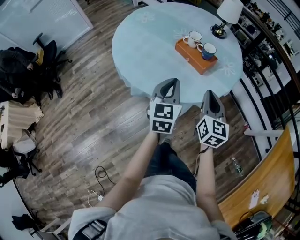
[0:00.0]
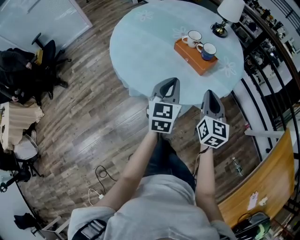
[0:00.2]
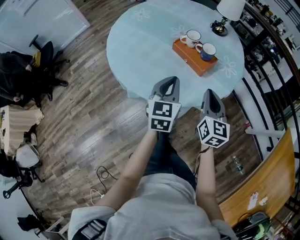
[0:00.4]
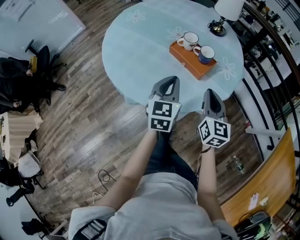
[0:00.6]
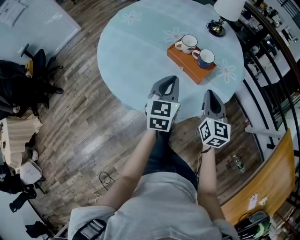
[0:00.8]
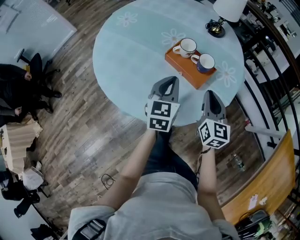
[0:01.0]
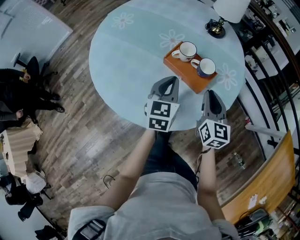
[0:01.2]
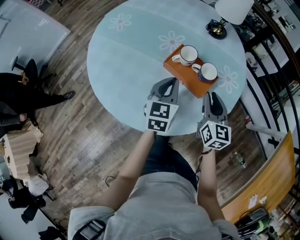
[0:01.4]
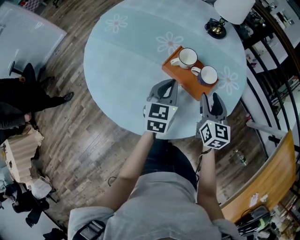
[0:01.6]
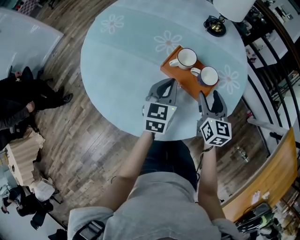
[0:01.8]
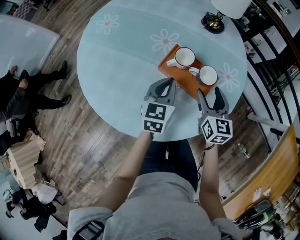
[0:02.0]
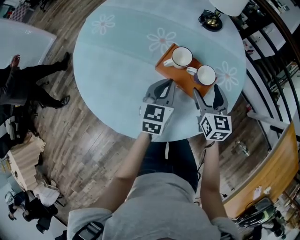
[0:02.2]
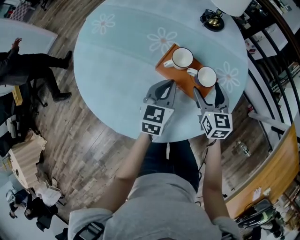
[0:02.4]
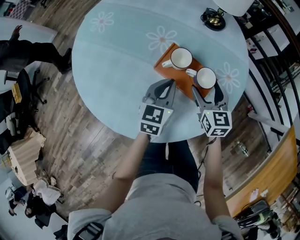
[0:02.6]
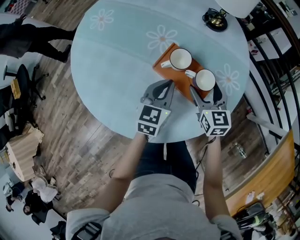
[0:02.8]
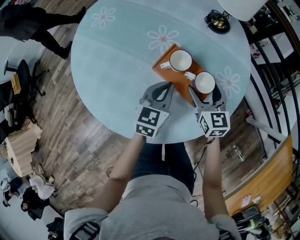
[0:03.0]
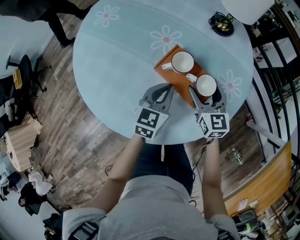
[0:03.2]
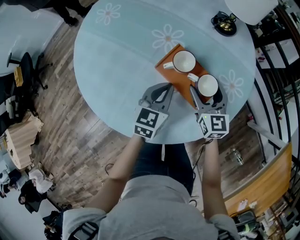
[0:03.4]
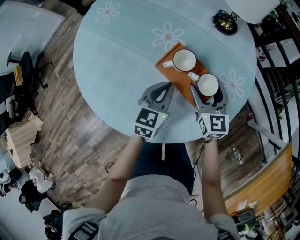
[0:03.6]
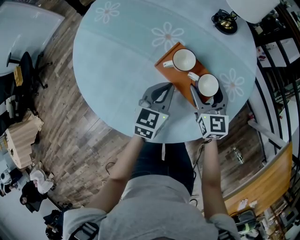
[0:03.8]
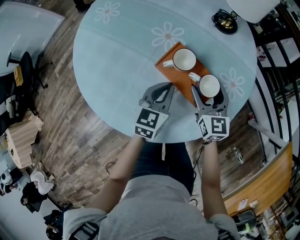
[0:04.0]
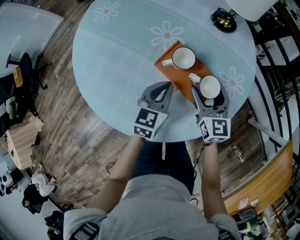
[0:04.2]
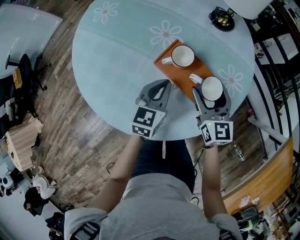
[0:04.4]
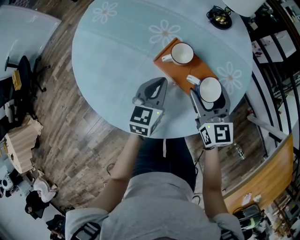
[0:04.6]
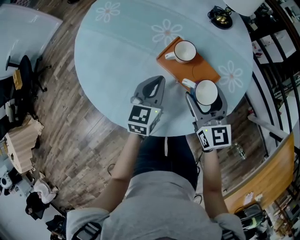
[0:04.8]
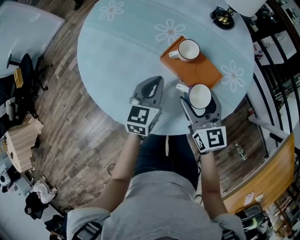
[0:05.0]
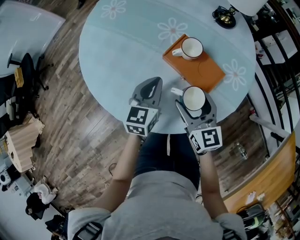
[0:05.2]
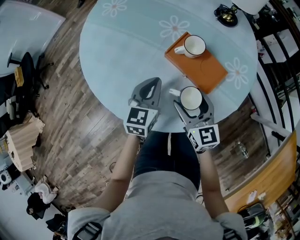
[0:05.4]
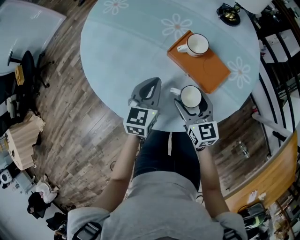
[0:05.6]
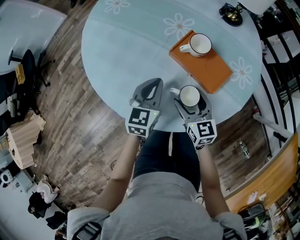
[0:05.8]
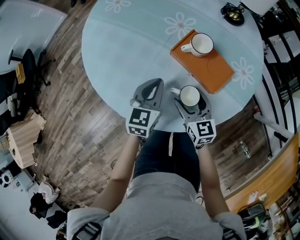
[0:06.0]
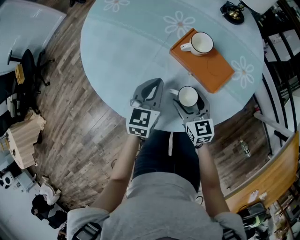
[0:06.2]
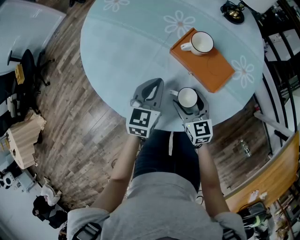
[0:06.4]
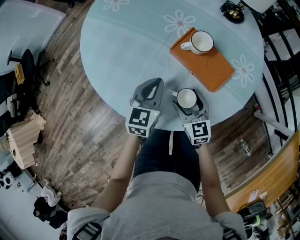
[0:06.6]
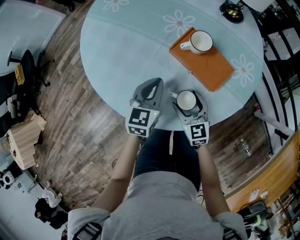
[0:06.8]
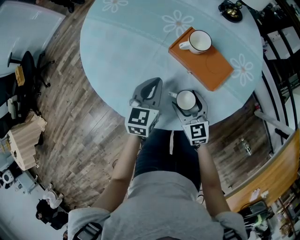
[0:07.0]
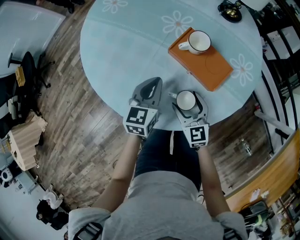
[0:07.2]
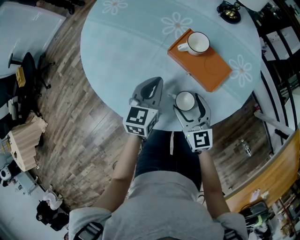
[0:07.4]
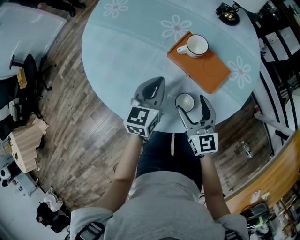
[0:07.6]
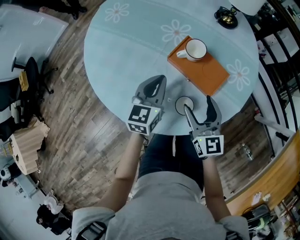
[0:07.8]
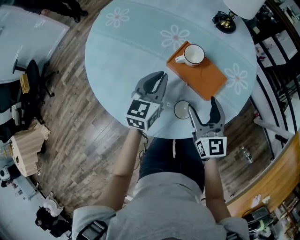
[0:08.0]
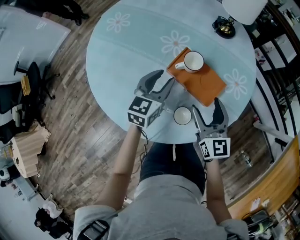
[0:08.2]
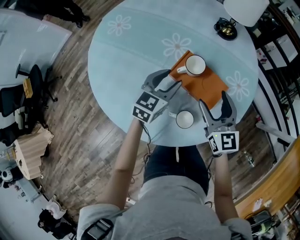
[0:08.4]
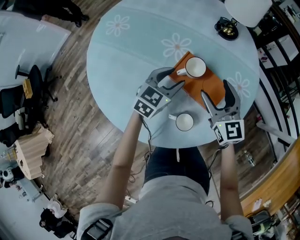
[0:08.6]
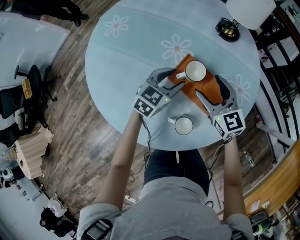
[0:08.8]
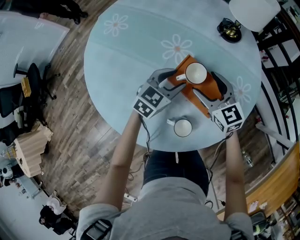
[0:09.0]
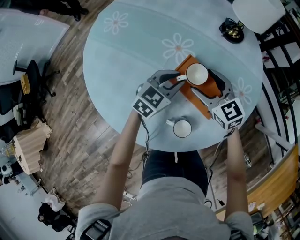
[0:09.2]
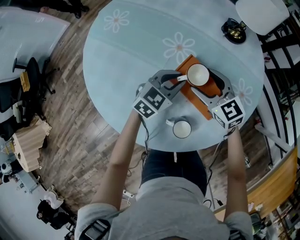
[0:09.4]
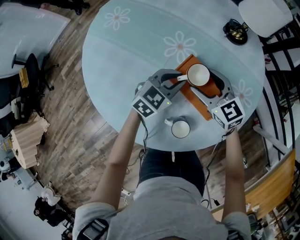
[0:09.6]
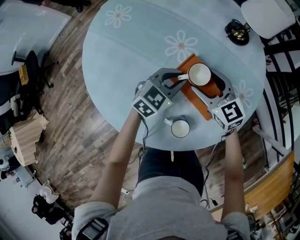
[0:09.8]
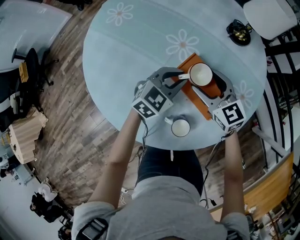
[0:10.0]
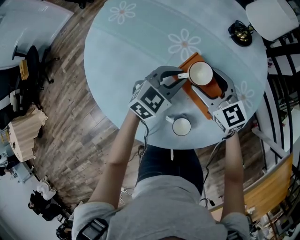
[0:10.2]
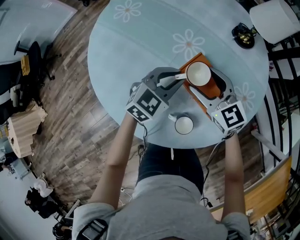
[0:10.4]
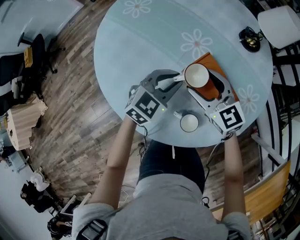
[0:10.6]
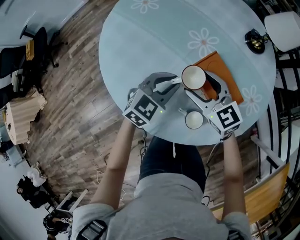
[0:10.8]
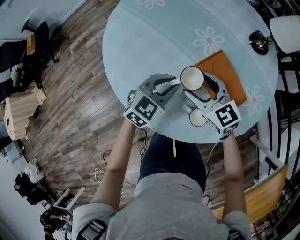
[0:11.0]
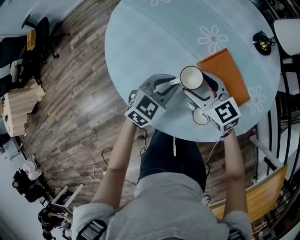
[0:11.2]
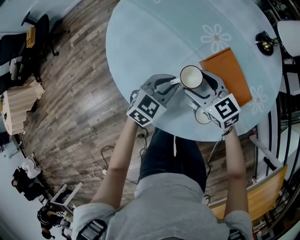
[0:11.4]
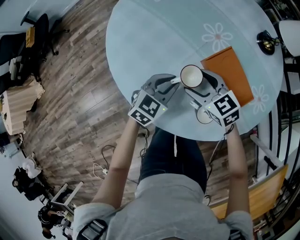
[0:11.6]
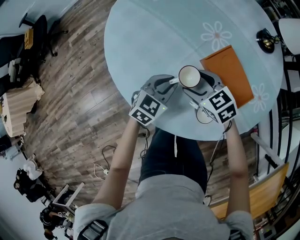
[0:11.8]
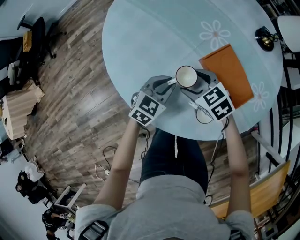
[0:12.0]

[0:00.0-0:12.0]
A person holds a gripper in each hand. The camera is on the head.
0.0 to 1.6 s: Both grippers travel together forward, approximately 25 cm. The right gripper opens its fingers.
1.6 to 3.0 s: The right gripper moves forward, approximately 10 cm, and opens its fingers; the left gripper shifts by approximately 5 cm.
3.0 to 4.4 s: The grippers make only small movements.
4.4 to 6.0 s: The left gripper is displaced to the left by about 10 cm, while the right gripper heads to the left, backward and downward, covering roughly 20 cm.
6.0 to 7.6 s: The right gripper is displaced upward by approximately 5 cm.
7.6 to 9.0 s: The right gripper travels forward by approximately 20 cm, while the left gripper shifts approximately 15 cm forward and to the right, turns by roughly 30 degrees, and opens up.
9.0 to 10.4 s: The left gripper closes, while the right gripper is displaced to the left by roughly 5 cm.
10.4 to 12.0 s: The two grippers go some 20 cm to the left, downward and backward. The right gripper turns by roughly 30 degrees.

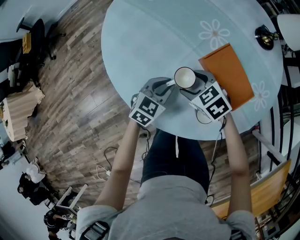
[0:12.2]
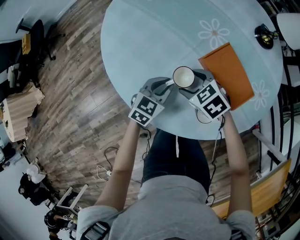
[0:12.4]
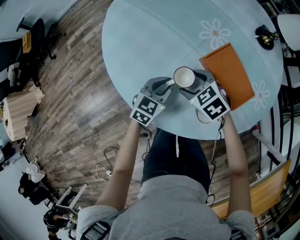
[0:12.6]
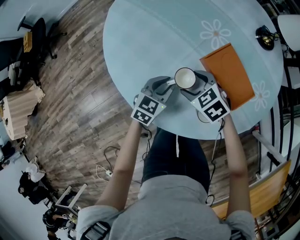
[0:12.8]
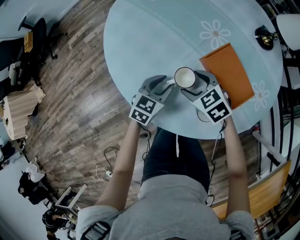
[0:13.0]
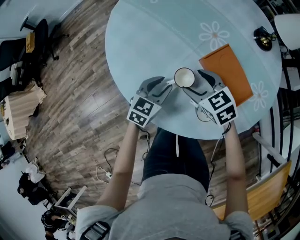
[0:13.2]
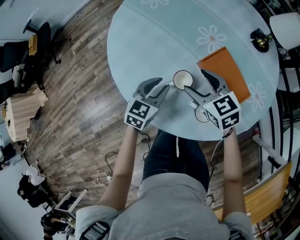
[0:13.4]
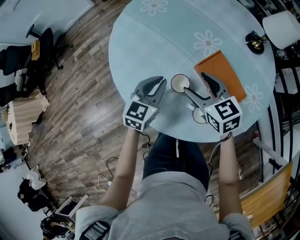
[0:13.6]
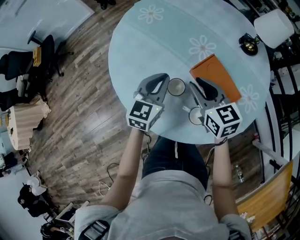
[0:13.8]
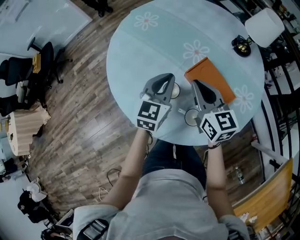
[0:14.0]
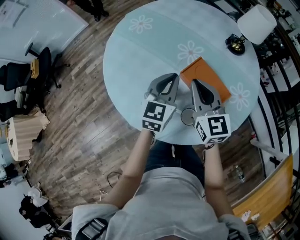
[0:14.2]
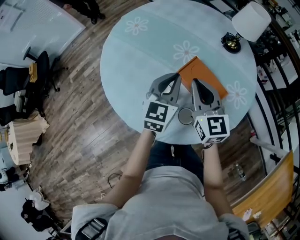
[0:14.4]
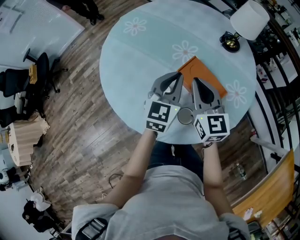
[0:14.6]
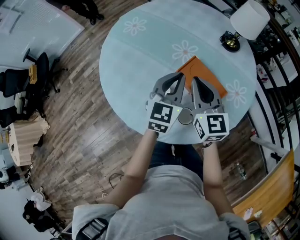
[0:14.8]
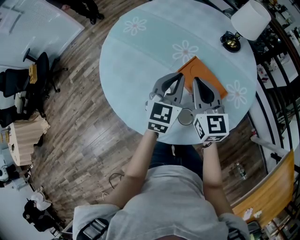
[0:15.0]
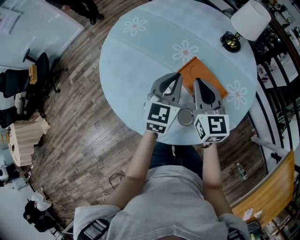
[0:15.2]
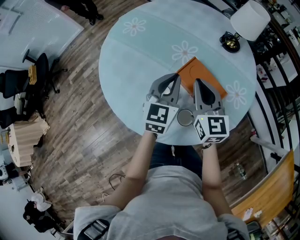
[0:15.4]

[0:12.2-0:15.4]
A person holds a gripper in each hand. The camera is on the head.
12.2 to 13.8 s: The grippers both shift upward by roughly 15 cm. The right gripper tips its fingers upward by about 30 degrees, and closes up. Meanwhile the left gripper changes its angle by roughly 20 degrees.
13.8 to 15.4 s: Both grippers move to the right, some 10 cm. The right gripper turns by about 30 degrees, and closes up.

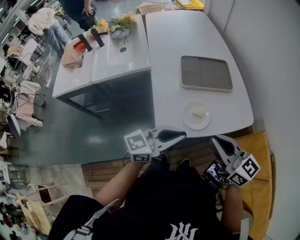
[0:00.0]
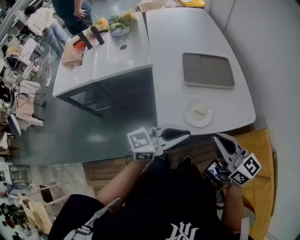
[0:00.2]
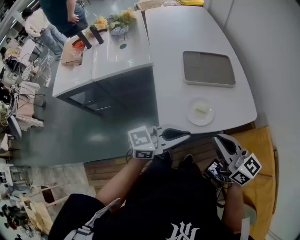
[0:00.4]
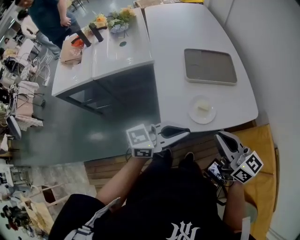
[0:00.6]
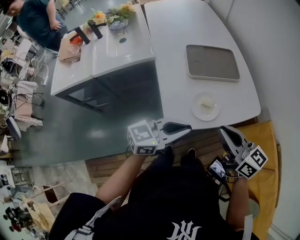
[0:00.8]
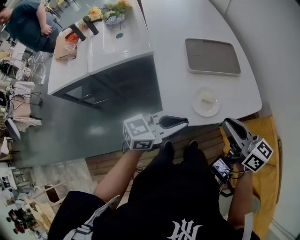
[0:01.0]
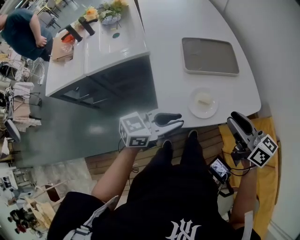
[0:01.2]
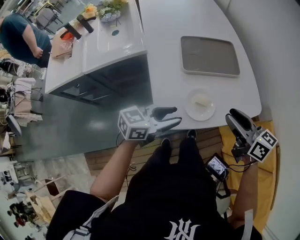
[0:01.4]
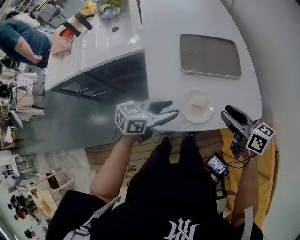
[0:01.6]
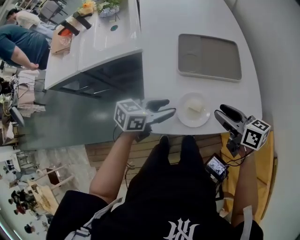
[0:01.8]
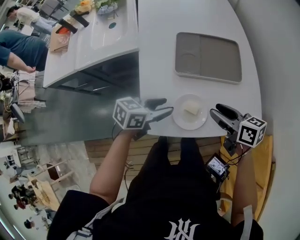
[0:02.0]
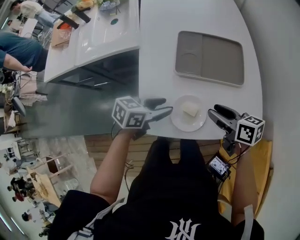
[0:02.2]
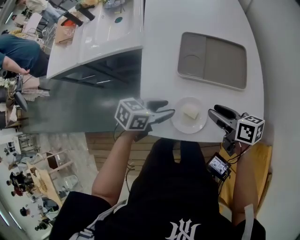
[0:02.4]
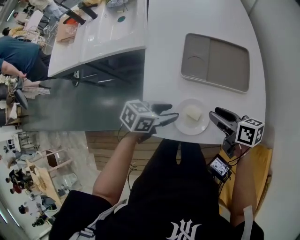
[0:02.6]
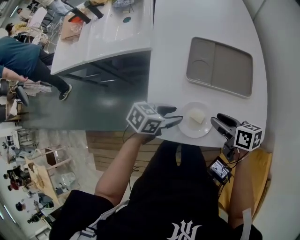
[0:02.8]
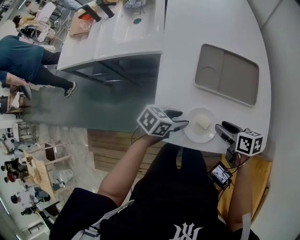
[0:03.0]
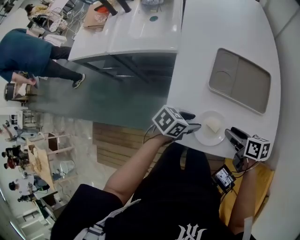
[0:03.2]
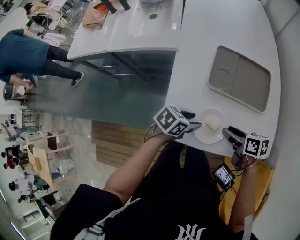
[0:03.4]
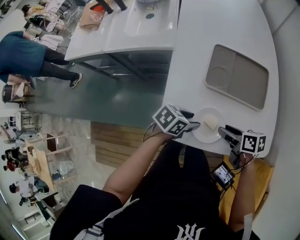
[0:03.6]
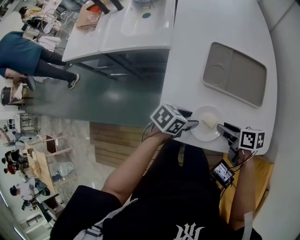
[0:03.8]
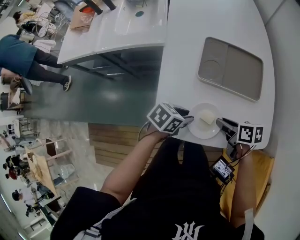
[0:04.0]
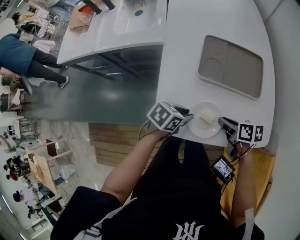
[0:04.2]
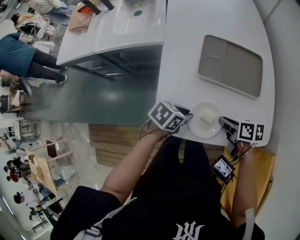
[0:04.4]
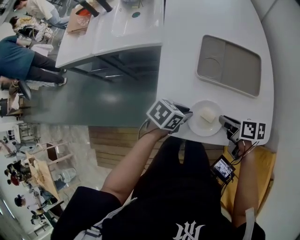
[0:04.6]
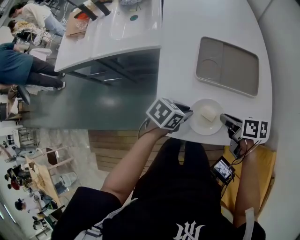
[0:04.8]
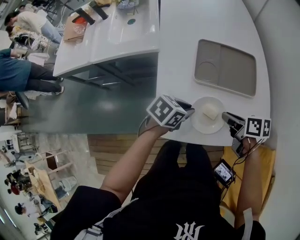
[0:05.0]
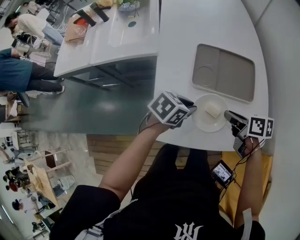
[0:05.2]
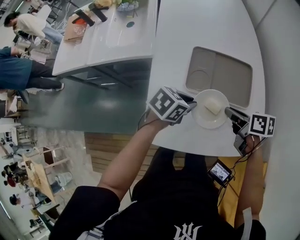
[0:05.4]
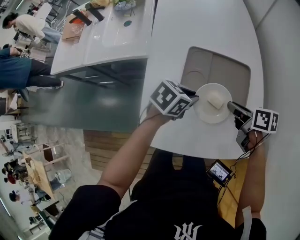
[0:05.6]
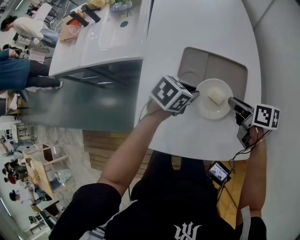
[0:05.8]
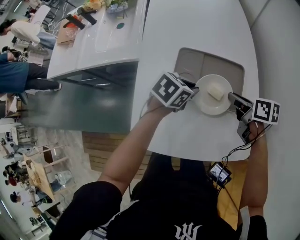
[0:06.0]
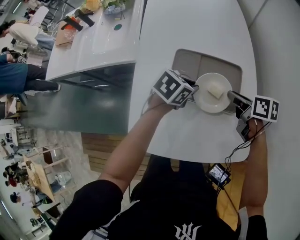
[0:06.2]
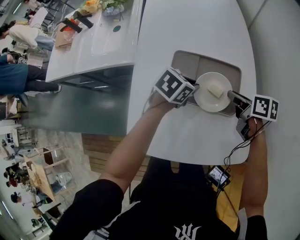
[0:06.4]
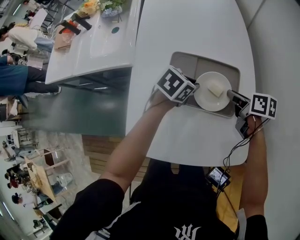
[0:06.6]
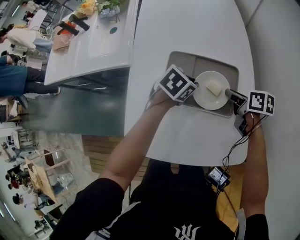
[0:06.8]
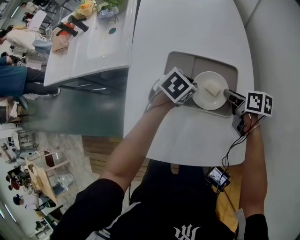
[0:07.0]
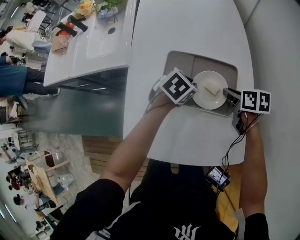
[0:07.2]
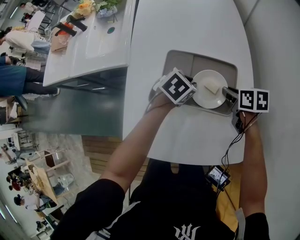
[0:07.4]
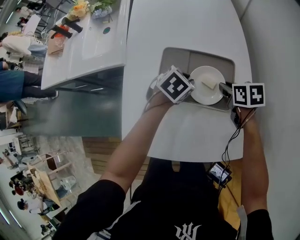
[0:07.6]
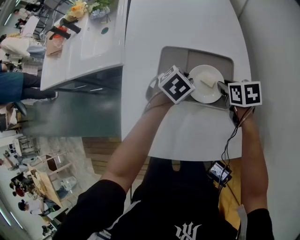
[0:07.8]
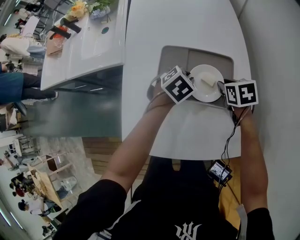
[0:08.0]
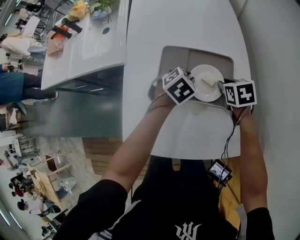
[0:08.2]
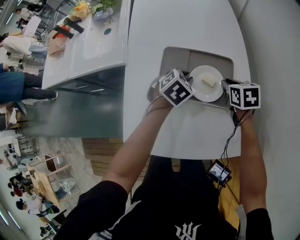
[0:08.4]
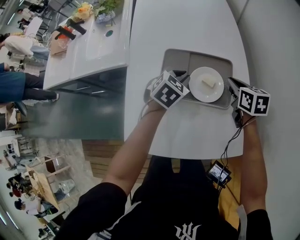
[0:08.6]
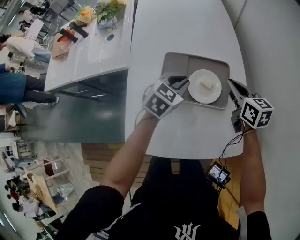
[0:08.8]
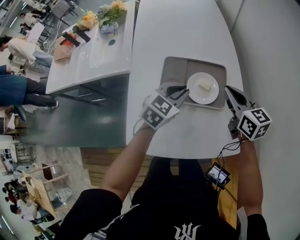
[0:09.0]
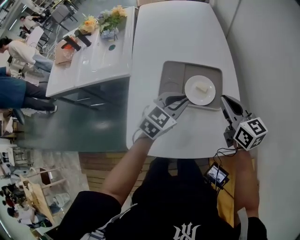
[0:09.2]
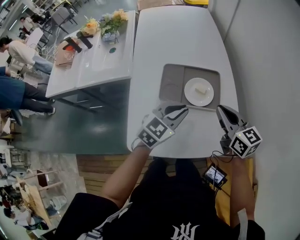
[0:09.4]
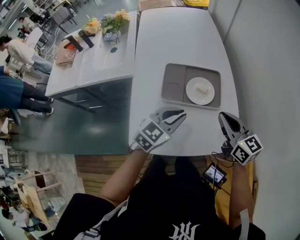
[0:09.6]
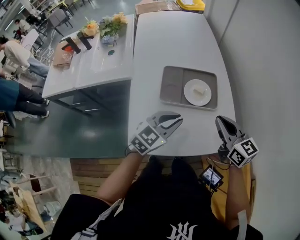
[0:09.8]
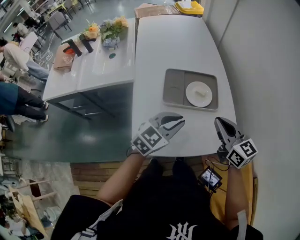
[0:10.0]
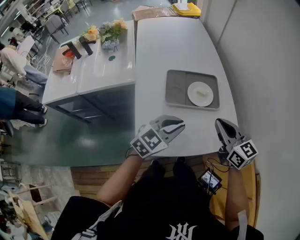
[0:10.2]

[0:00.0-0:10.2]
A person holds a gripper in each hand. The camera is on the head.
0.0 to 1.4 s: The right gripper is displaced forward and downward by about 10 cm, and opens, while the left gripper is displaced downward and forward by about 10 cm, rotates approximately 20 degrees, and opens its fingers.
1.4 to 3.0 s: The two grippers go about 15 cm downward. The left gripper changes its angle by some 30 degrees; the right gripper changes its angle by some 30 degrees.
3.0 to 4.4 s: The right gripper closes. The left gripper closes up.
4.4 to 5.8 s: The right gripper shifts by approximately 20 cm. Meanwhile the left gripper ends up approximately 20 cm from where it was.
5.8 to 7.2 s: Both grippers travel together forward and downward, roughly 10 cm.
7.2 to 8.8 s: Both grippers travel together upward, roughly 10 cm. The left gripper changes its angle by approximately 20 degrees. Meanwhile the right gripper rotates some 30 degrees.
8.8 to 10.2 s: The right gripper travels backward and upward by approximately 25 cm; the left gripper shifts some 20 cm backward, and swivels some 30 degrees.
